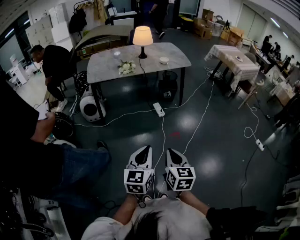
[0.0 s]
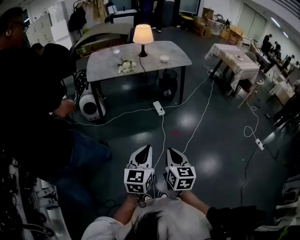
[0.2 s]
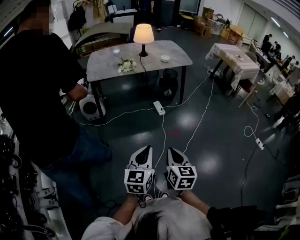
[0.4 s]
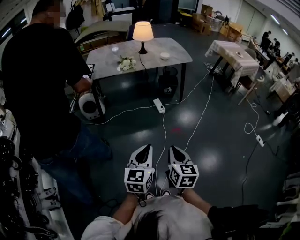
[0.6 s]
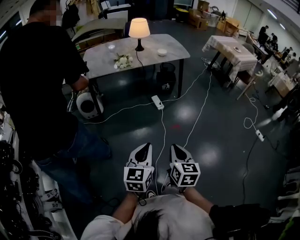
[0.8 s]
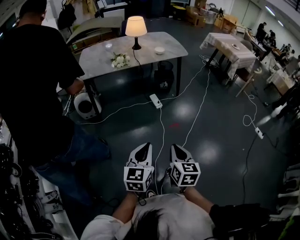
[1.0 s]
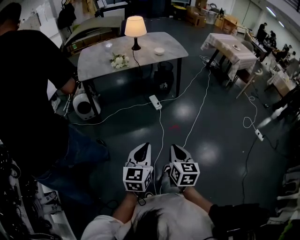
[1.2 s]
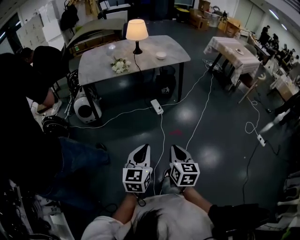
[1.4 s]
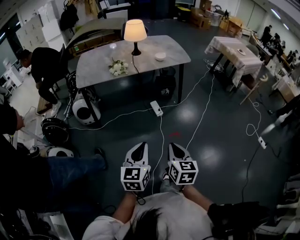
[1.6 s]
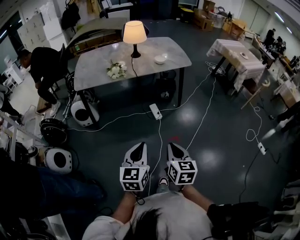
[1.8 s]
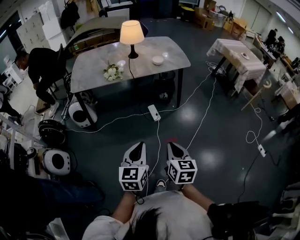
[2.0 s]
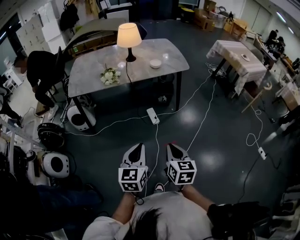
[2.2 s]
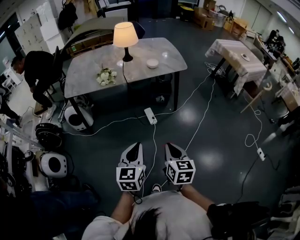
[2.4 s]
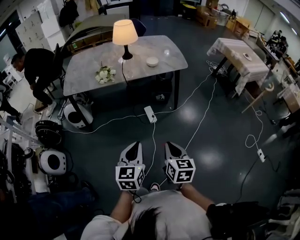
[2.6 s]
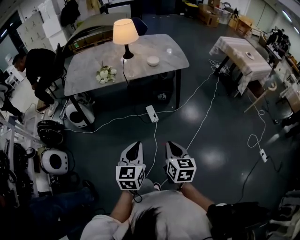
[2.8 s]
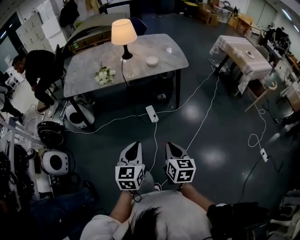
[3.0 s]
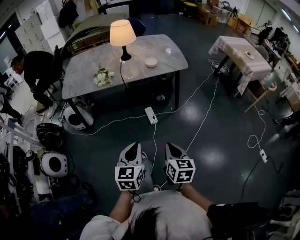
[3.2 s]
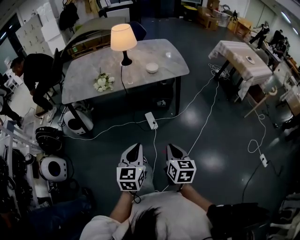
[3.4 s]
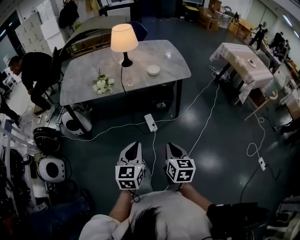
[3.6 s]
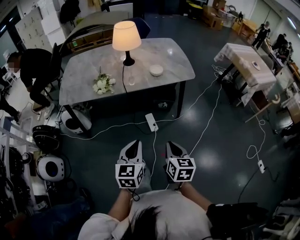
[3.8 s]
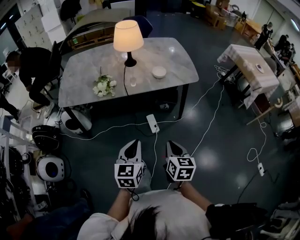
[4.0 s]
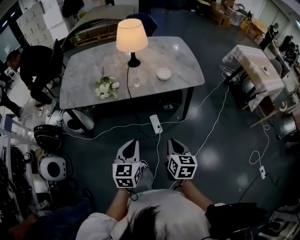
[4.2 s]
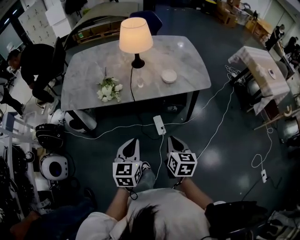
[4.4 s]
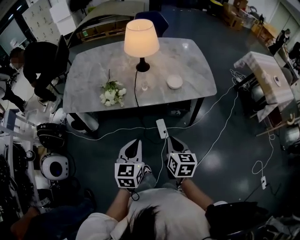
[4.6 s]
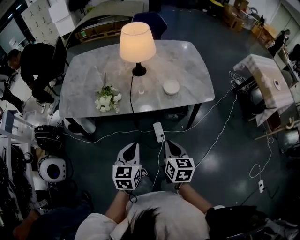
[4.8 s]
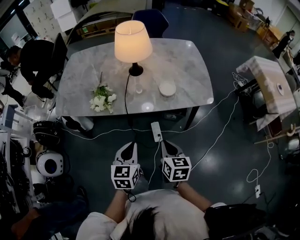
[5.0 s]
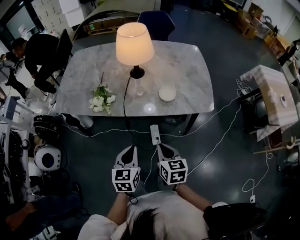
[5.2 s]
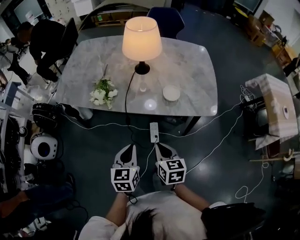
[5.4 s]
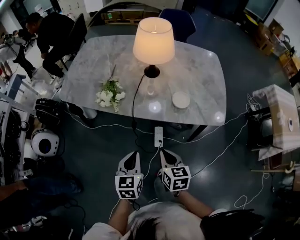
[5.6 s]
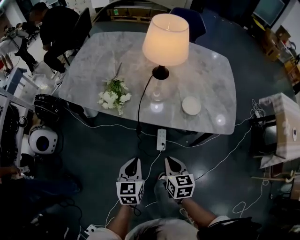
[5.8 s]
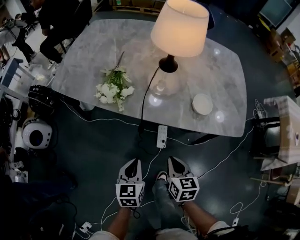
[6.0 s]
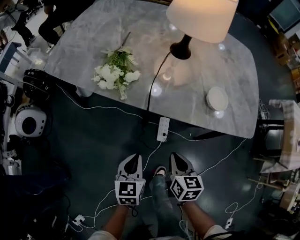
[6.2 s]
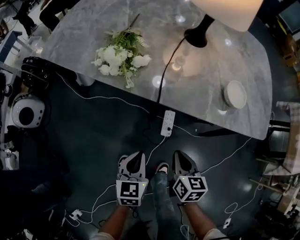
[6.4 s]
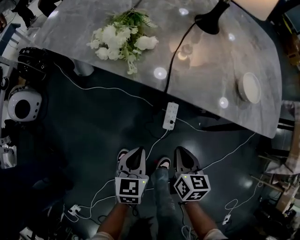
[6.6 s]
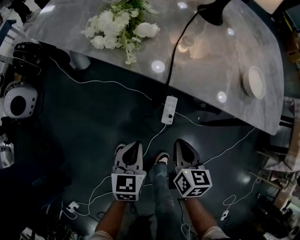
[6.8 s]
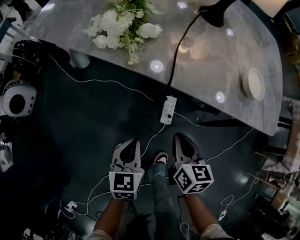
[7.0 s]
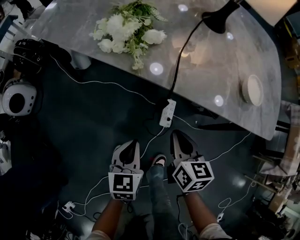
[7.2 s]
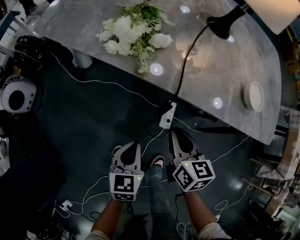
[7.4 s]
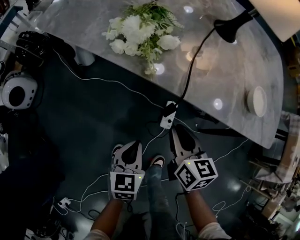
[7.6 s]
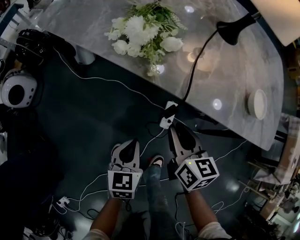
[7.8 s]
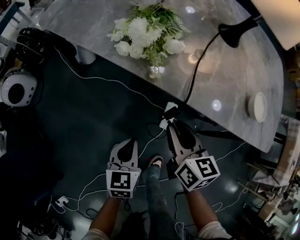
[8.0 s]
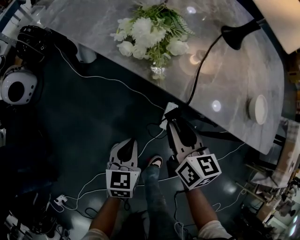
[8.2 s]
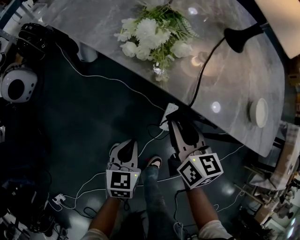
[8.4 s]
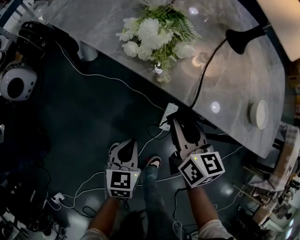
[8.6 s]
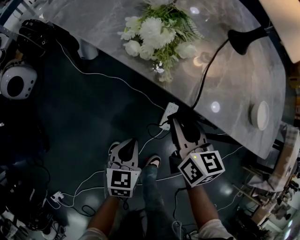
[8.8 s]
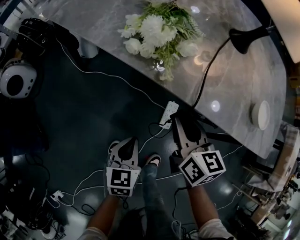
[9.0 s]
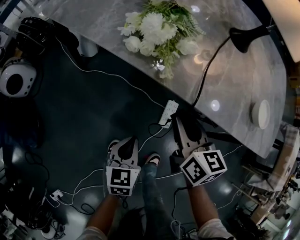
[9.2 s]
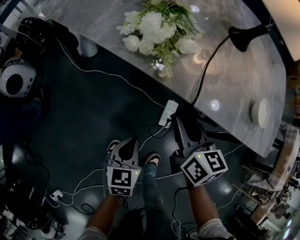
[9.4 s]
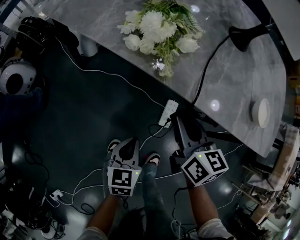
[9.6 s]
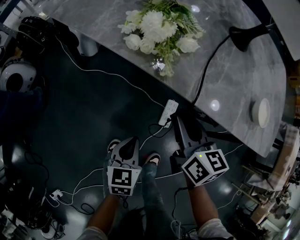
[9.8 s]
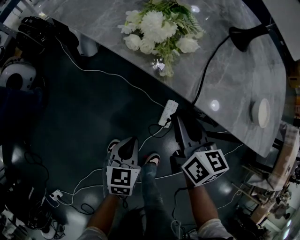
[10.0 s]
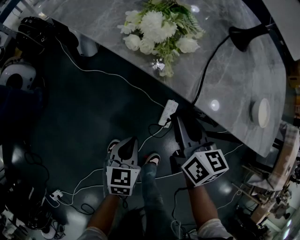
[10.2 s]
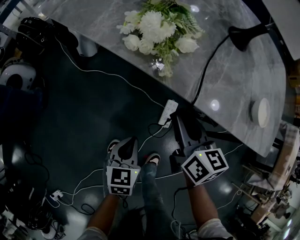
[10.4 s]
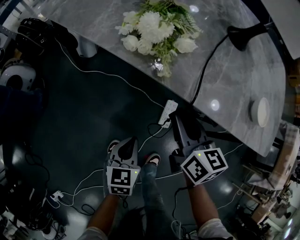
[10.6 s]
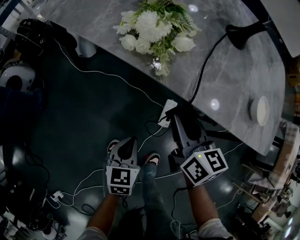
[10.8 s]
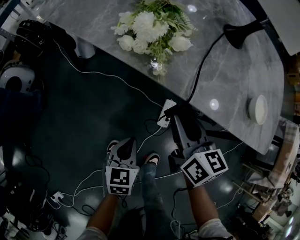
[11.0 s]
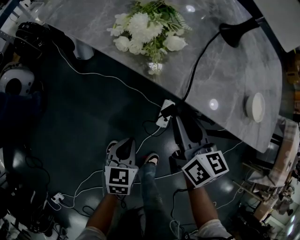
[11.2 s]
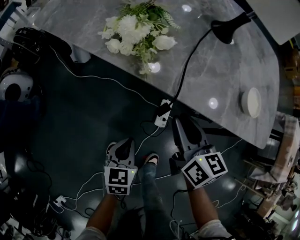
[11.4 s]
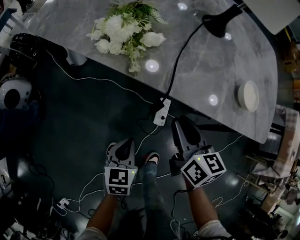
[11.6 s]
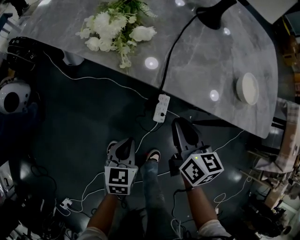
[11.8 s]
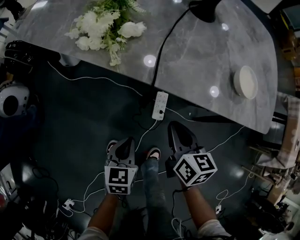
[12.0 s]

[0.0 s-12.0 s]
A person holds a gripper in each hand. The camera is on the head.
0.0 to 1.6 s: The two grippers go some 15 cm forward.
1.6 to 3.0 s: Both grippers travel together forward and to the right, roughly 20 cm.
3.0 to 4.4 s: Both grippers move forward, some 25 cm.
4.4 to 6.0 s: The left gripper moves downward and forward, roughly 20 cm, and swivels roughly 30 degrees. Meanwhile the right gripper heads forward and downward, covering roughly 20 cm, and swivels approximately 30 degrees.
6.0 to 7.6 s: The right gripper shifts approximately 15 cm downward, forward and to the left. Meanwhile the left gripper moves downward, about 15 cm.
7.6 to 9.0 s: The right gripper goes approximately 5 cm forward.
9.0 to 10.4 s: Both grippers stay about where they are.
10.4 to 12.0 s: The left gripper moves to the right, approximately 5 cm; the right gripper shifts roughly 10 cm to the right and backward.

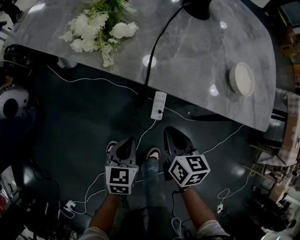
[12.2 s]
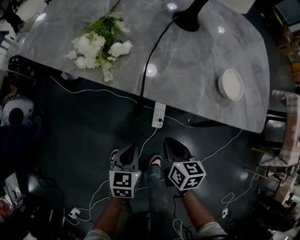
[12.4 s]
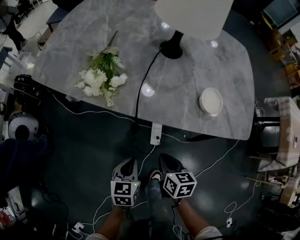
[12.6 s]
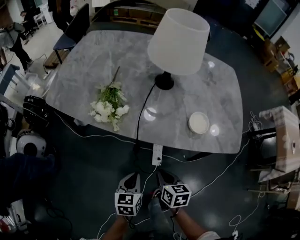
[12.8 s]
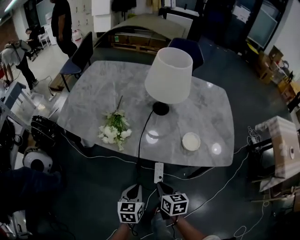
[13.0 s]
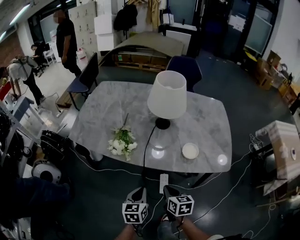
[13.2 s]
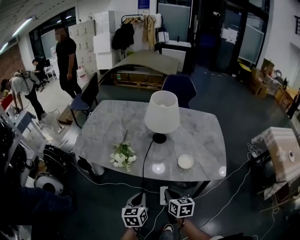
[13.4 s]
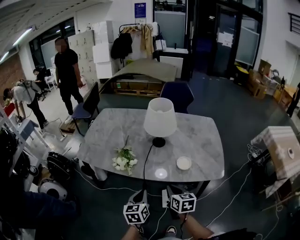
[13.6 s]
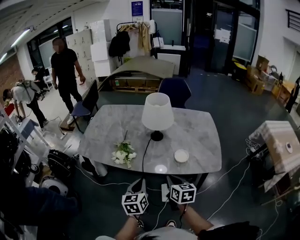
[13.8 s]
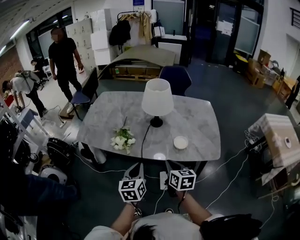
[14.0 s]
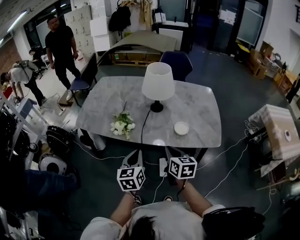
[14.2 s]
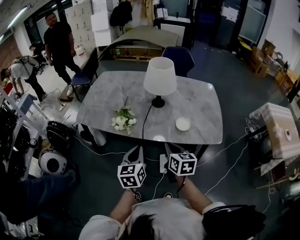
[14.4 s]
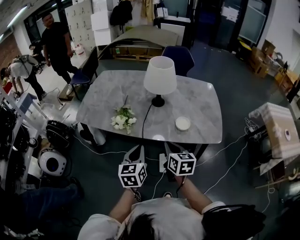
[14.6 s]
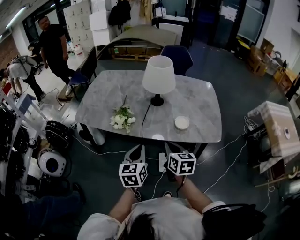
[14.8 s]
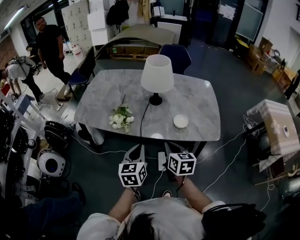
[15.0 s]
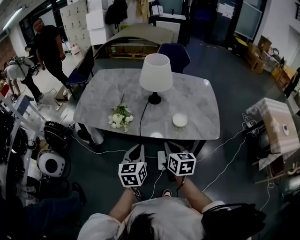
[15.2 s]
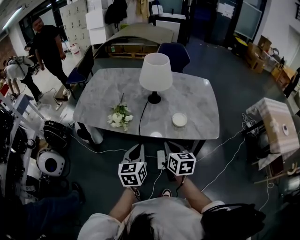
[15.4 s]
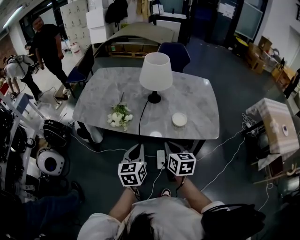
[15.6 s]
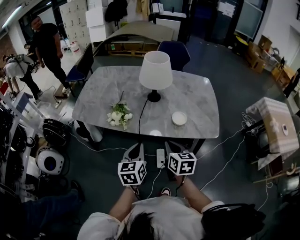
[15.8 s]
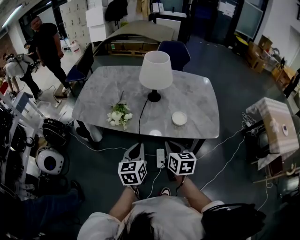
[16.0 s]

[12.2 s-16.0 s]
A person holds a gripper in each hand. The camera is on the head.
12.2 to 13.4 s: Both grippers travel together upward, approximately 25 cm.
13.4 to 14.8 s: The two grippers go about 10 cm upward.
14.8 to 16.0 s: The grippers stay close to where they were, moving slightly.

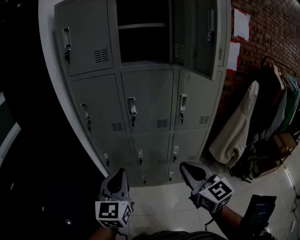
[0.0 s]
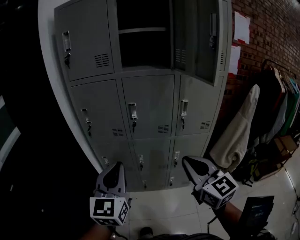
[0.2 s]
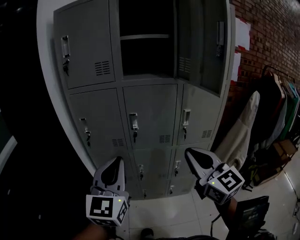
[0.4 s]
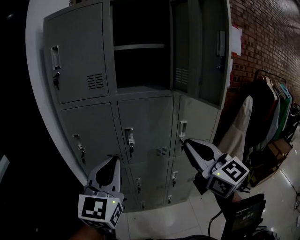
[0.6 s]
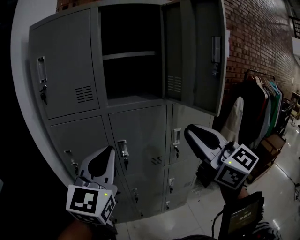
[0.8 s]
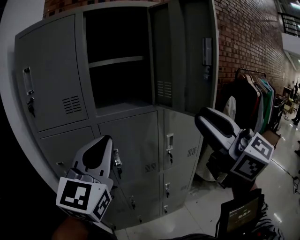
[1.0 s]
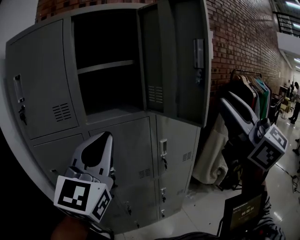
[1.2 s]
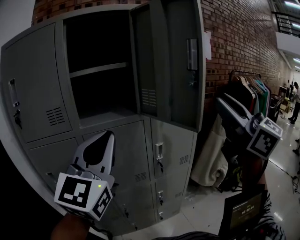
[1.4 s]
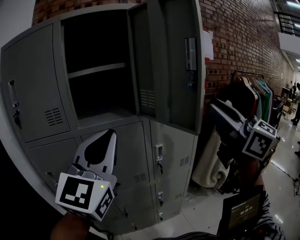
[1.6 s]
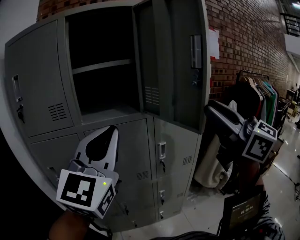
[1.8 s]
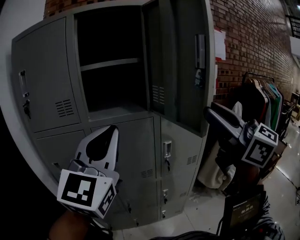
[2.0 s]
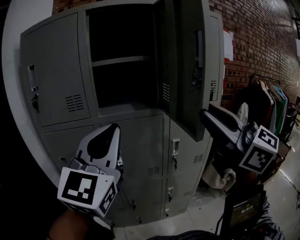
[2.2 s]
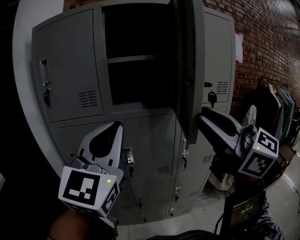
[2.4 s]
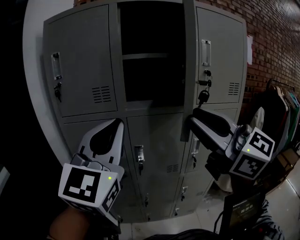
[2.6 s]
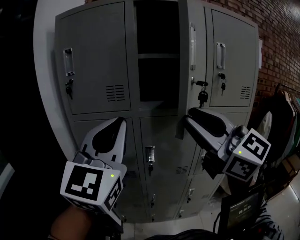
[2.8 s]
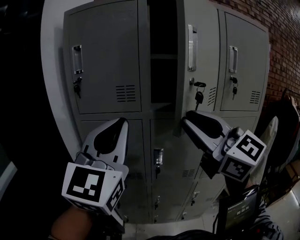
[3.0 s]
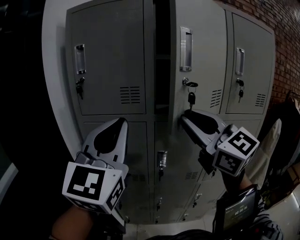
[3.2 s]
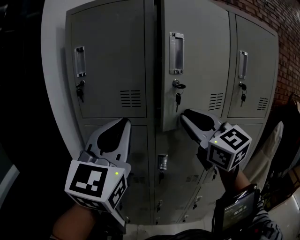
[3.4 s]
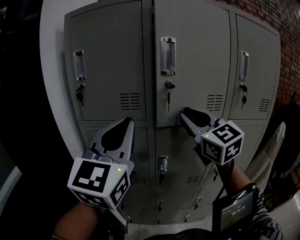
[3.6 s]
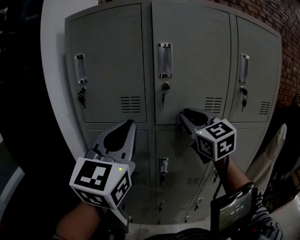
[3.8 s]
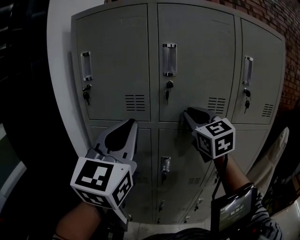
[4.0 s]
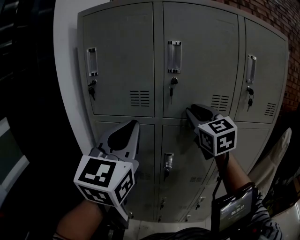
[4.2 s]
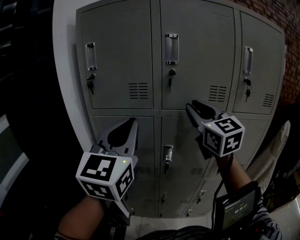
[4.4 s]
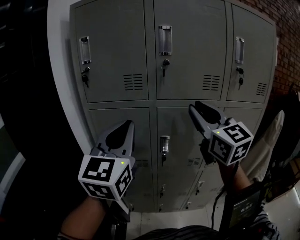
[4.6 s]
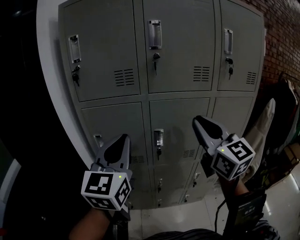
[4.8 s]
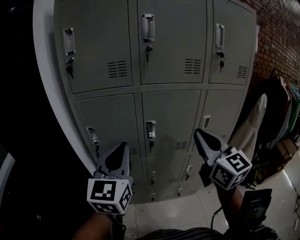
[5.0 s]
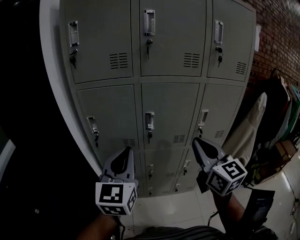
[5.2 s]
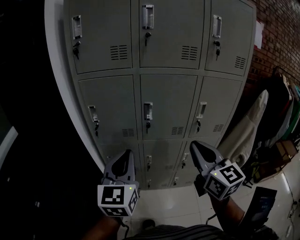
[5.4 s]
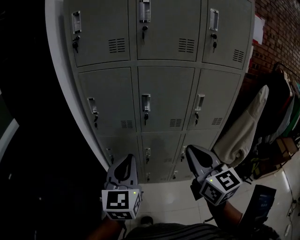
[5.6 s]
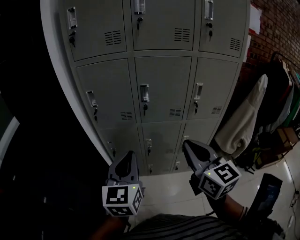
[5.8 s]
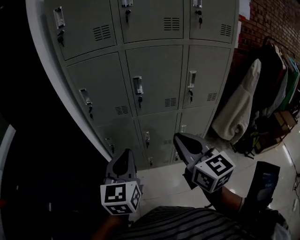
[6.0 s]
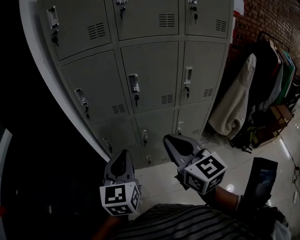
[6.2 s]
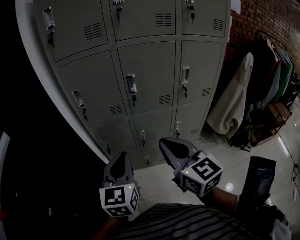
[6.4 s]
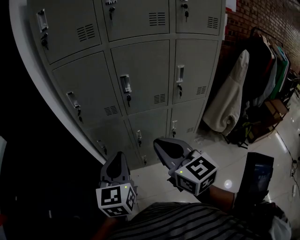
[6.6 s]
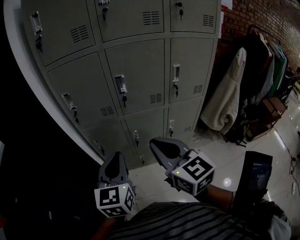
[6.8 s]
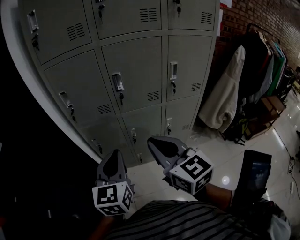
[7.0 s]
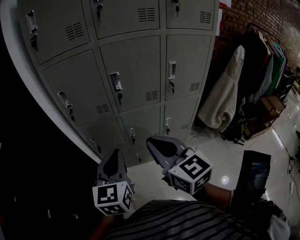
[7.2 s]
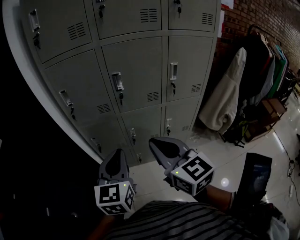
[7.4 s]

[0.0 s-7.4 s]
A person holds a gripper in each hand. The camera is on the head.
0.0 to 1.4 s: The right gripper travels upward and to the right by some 35 cm, changes its angle by approximately 30 degrees, and opens. Meanwhile the left gripper goes some 35 cm upward and forward, and changes its angle by about 30 degrees.
1.4 to 3.0 s: The right gripper travels to the left by roughly 30 cm, and turns by some 30 degrees; the left gripper shifts about 15 cm to the left.
3.0 to 4.4 s: The right gripper travels forward by approximately 10 cm.
4.4 to 6.0 s: The right gripper goes roughly 40 cm backward and downward, changes its angle by some 20 degrees, and closes its fingers; the left gripper heads downward and backward, covering approximately 35 cm, and rotates some 20 degrees.
6.0 to 7.4 s: There are only small adjustments of the grippers.
